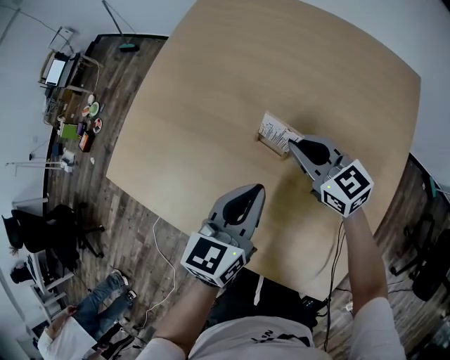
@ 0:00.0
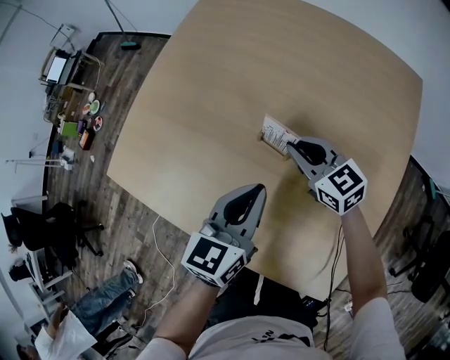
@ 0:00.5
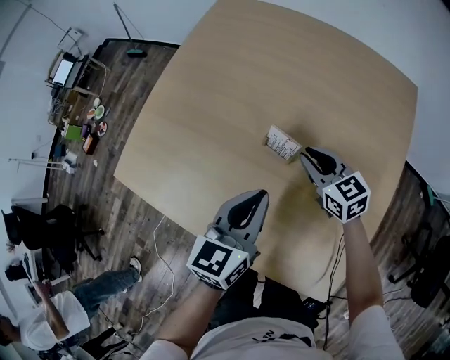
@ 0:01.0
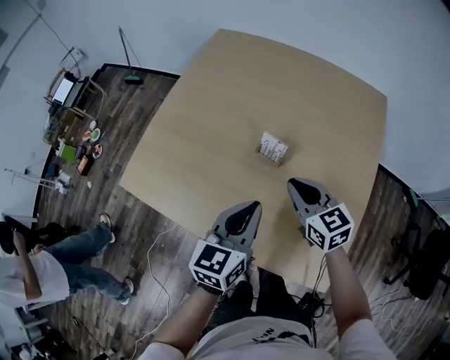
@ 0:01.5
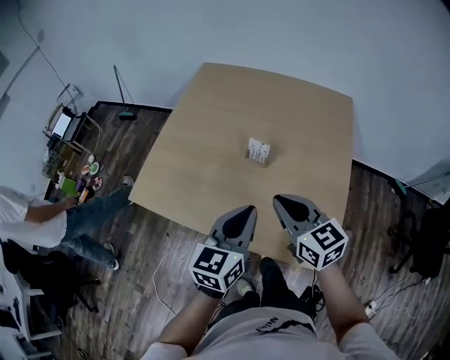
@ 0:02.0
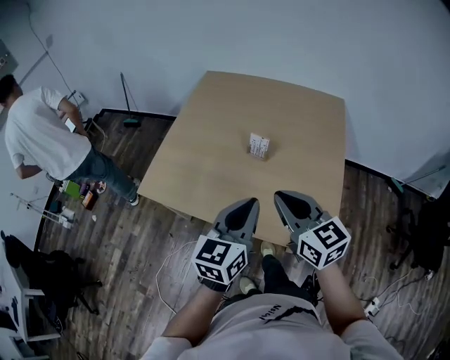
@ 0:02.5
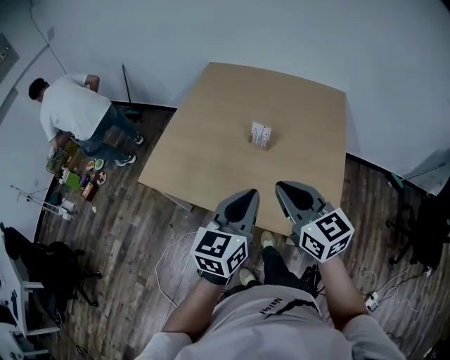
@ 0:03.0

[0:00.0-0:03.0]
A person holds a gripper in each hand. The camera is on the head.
0:00.0 to 0:01.5: Both grippers travel together backward and upward, about 10 cm.
0:01.5 to 0:03.0: The grippers both shift backward and upward by roughly 25 cm.

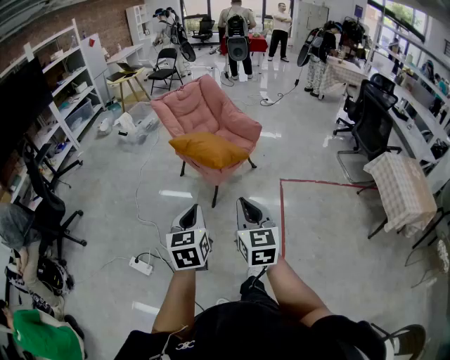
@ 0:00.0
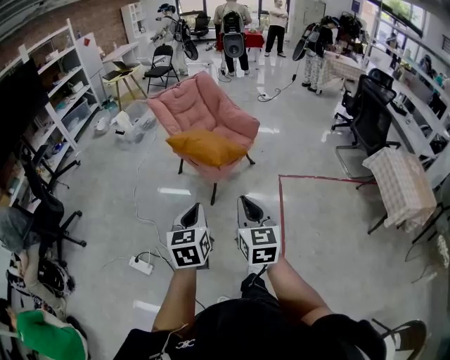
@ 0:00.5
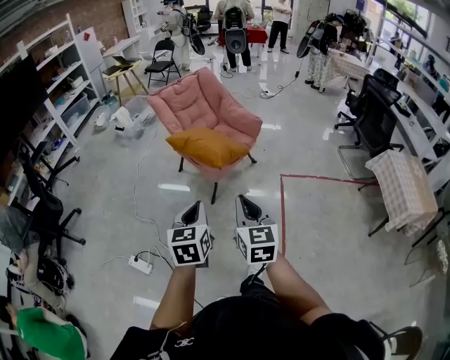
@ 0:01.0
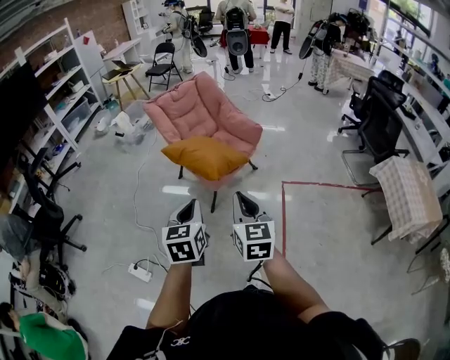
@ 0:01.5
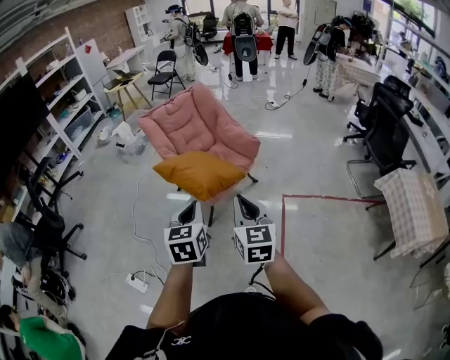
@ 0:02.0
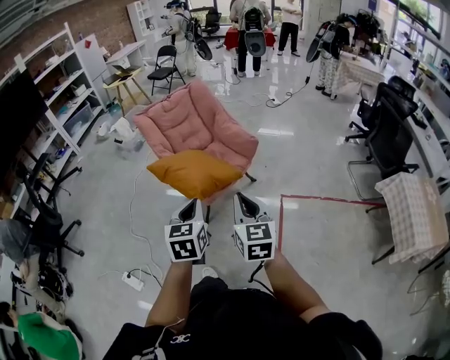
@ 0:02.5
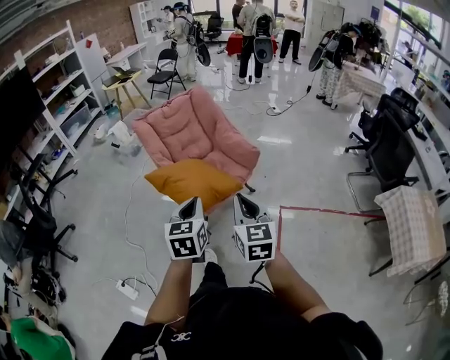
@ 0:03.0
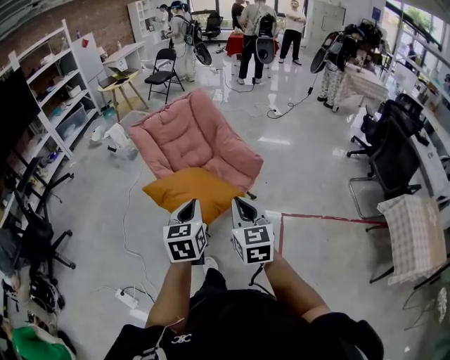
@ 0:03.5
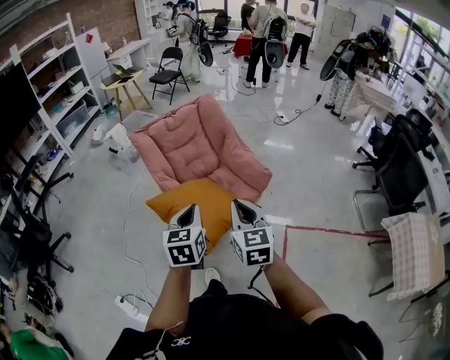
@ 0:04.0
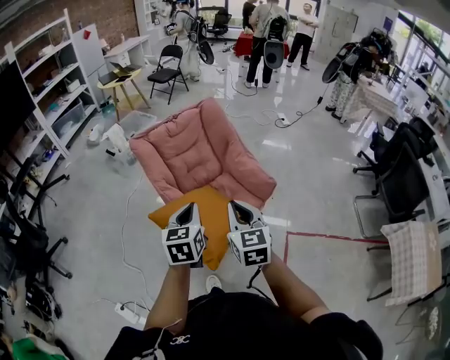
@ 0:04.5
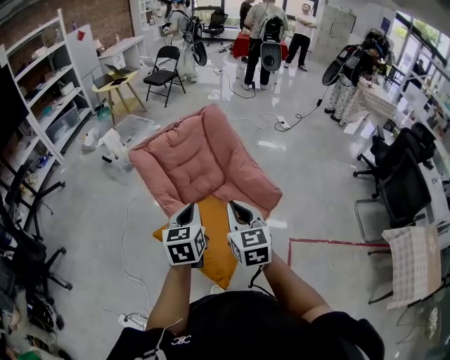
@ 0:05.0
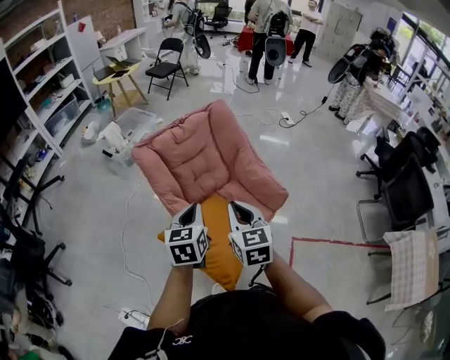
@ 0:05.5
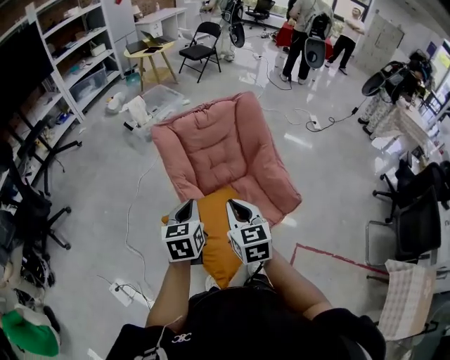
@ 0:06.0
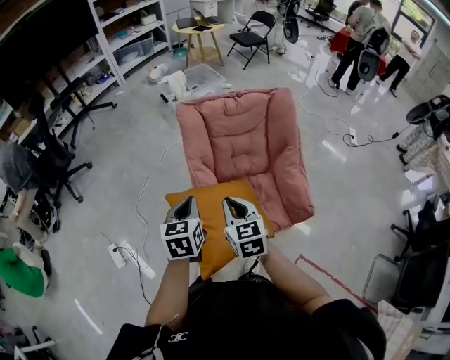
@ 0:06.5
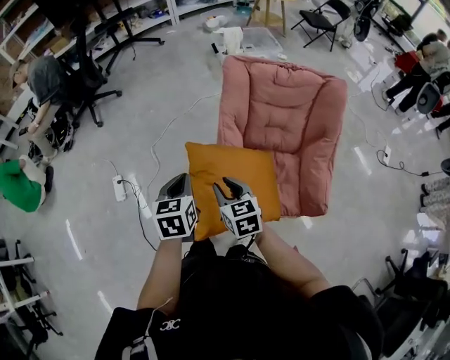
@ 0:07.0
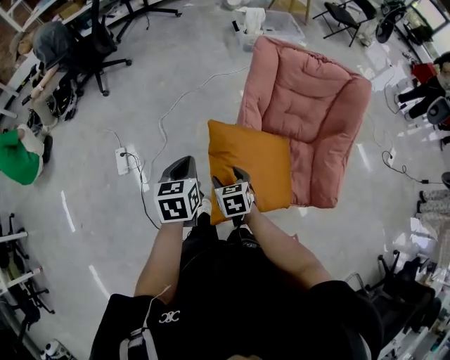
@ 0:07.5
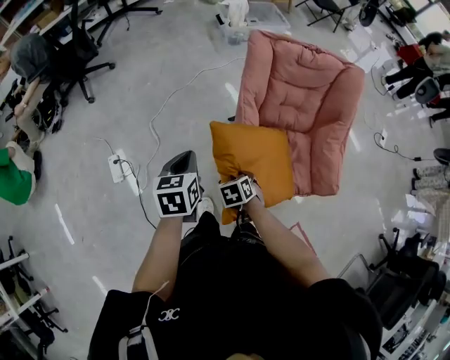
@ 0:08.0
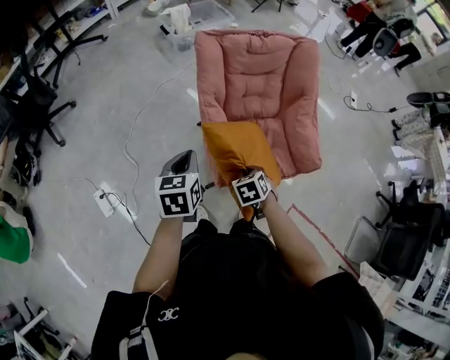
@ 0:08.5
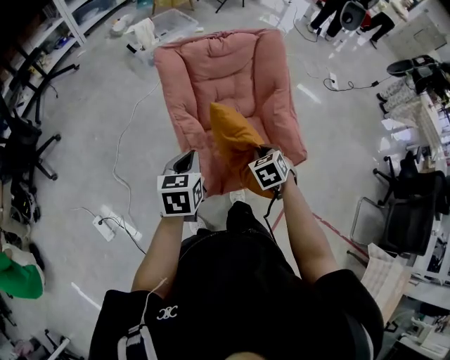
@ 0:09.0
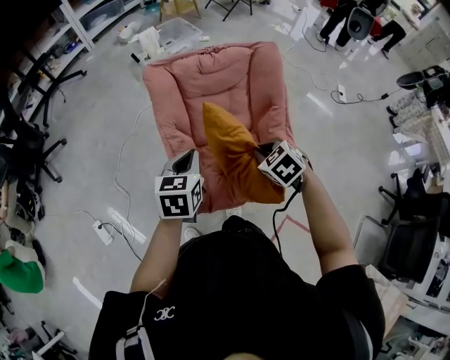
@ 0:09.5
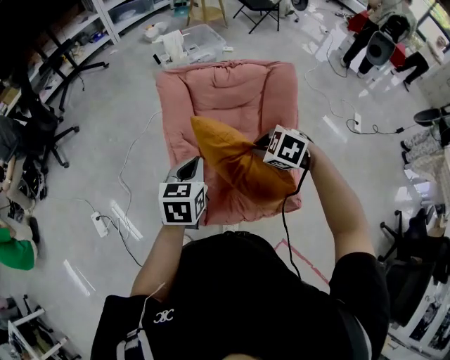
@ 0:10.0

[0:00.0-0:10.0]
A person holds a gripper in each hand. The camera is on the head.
0:00.0 to 0:02.0: Both grippers travel together forward and to the right, some 25 cm.
0:02.0 to 0:04.0: The grippers both shift forward by roughly 25 cm.
0:04.0 to 0:06.0: Both grippers travel together forward and to the left, approximately 25 cm.
0:06.0 to 0:08.0: The right gripper moves downward, approximately 30 cm, tilts its fingers approximately 50 degrees downward, and opens up, while the left gripper ends up some 20 cm from where it was, and rotates approximately 30 degrees.
0:08.0 to 0:10.0: The left gripper changes place by approximately 35 cm, and turns by roughly 20 degrees, while the right gripper moves approximately 40 cm, rotates approximately 40 degrees, and closes.

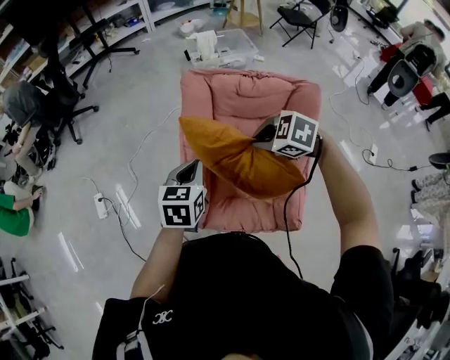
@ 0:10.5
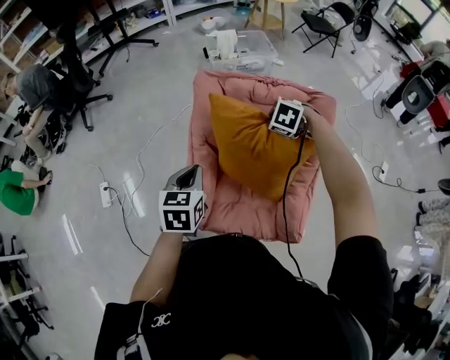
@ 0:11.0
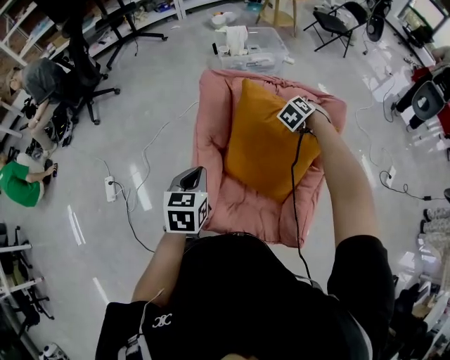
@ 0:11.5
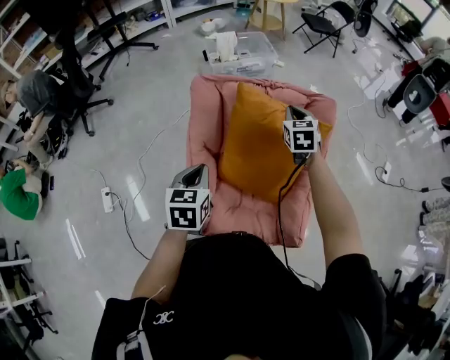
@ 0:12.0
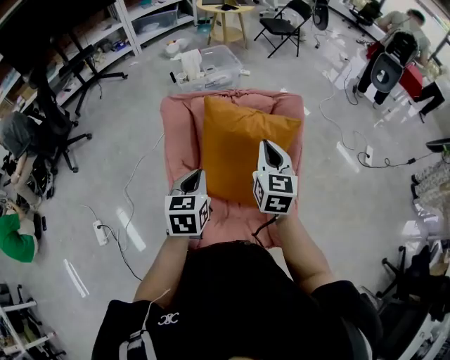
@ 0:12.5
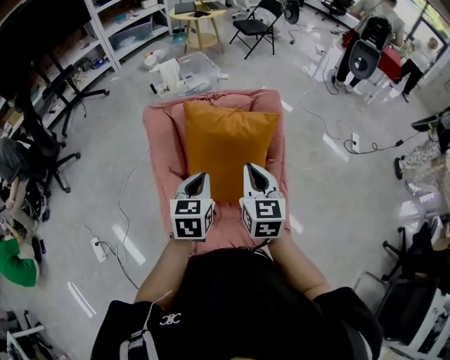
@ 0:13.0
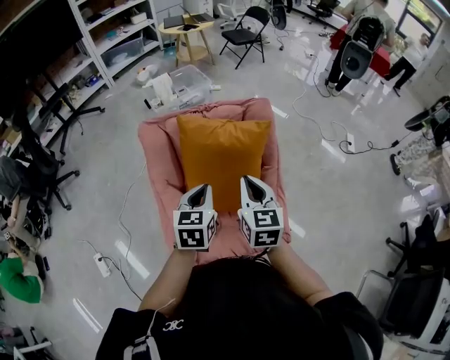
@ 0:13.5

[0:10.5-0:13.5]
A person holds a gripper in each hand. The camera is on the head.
0:10.5 to 0:12.0: The right gripper travels downward and back again, some 10 cm each way, and tips its fingers upward by about 30 degrees.
0:12.0 to 0:13.5: The right gripper shifts approximately 25 cm backward, and swivels about 20 degrees, while the left gripper goes about 15 cm to the right.

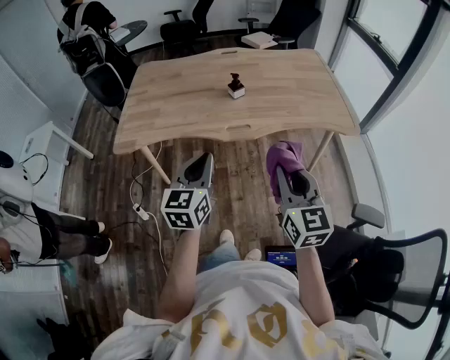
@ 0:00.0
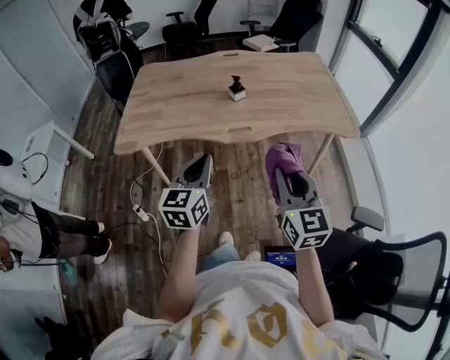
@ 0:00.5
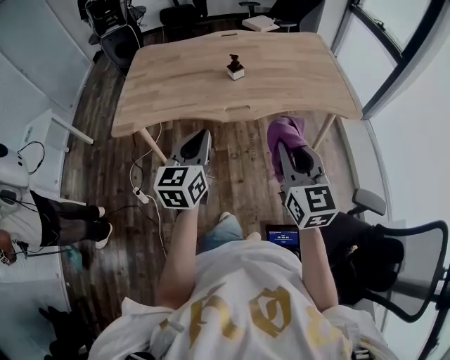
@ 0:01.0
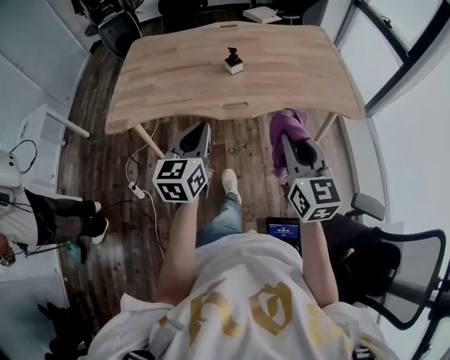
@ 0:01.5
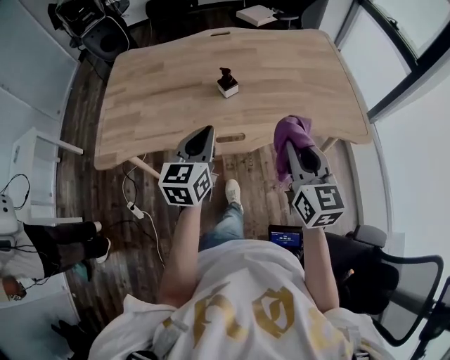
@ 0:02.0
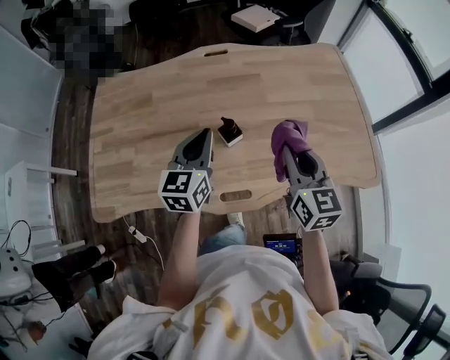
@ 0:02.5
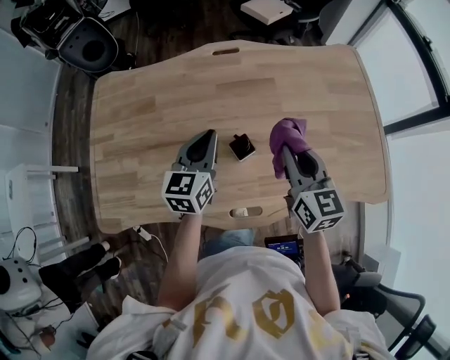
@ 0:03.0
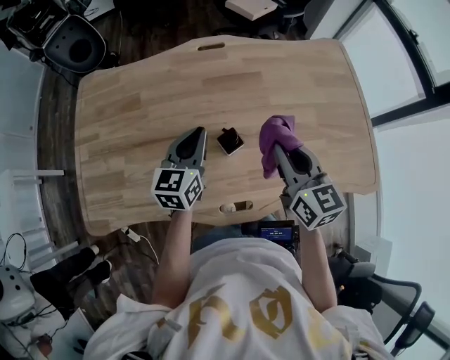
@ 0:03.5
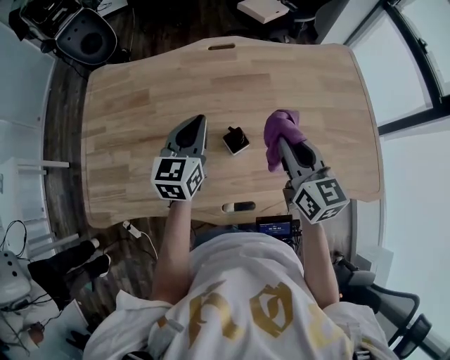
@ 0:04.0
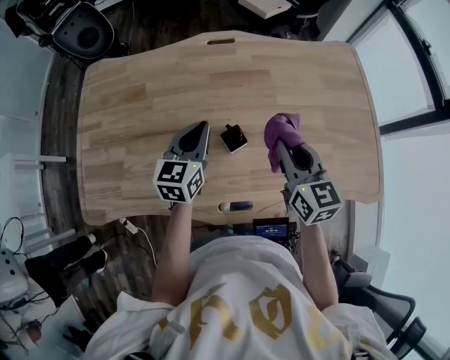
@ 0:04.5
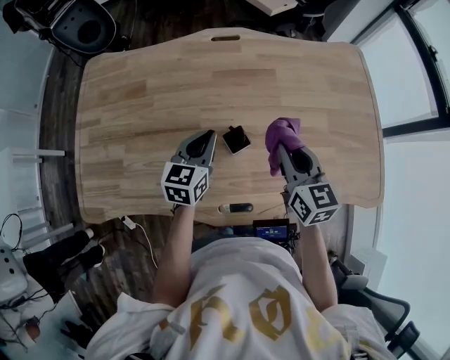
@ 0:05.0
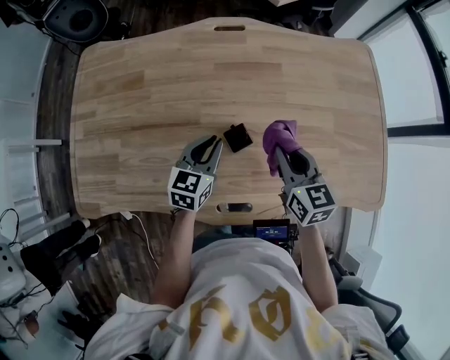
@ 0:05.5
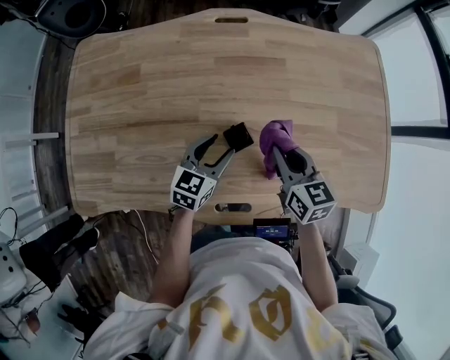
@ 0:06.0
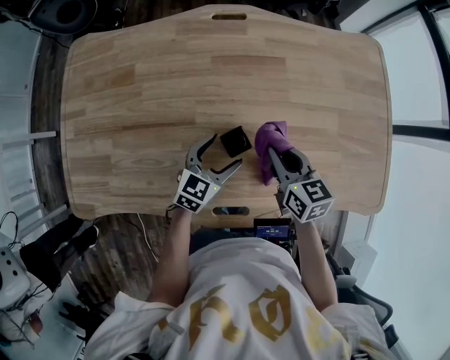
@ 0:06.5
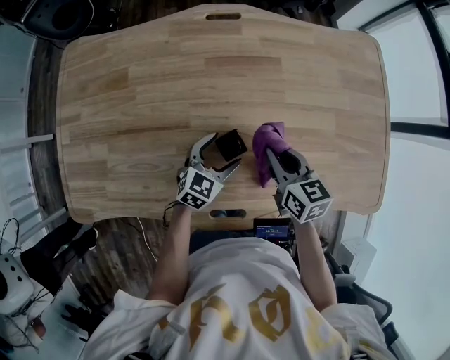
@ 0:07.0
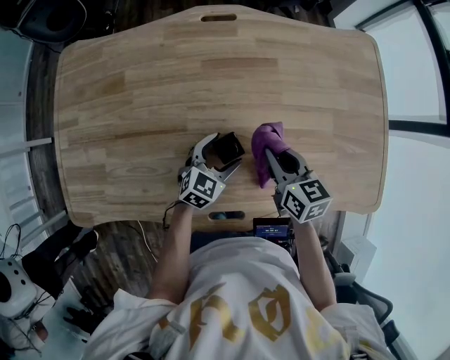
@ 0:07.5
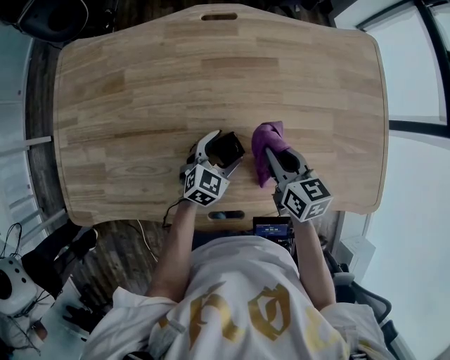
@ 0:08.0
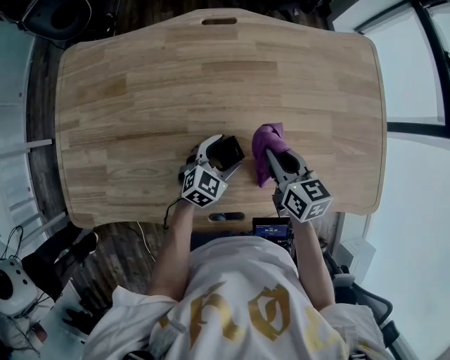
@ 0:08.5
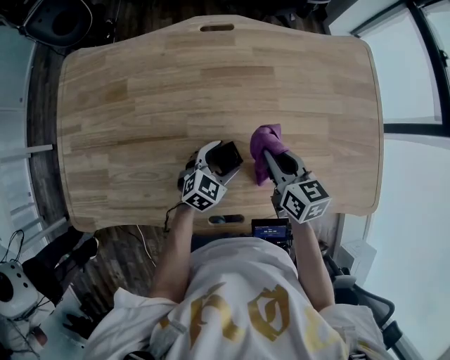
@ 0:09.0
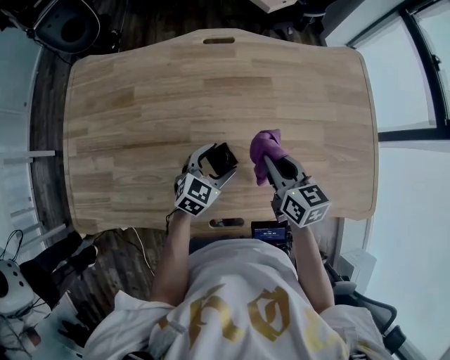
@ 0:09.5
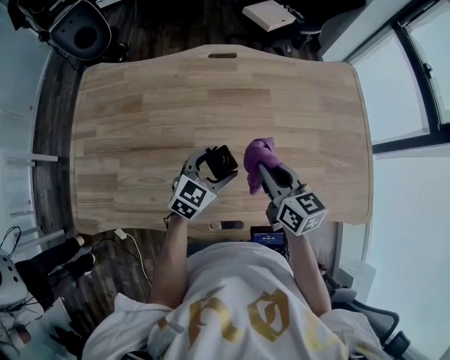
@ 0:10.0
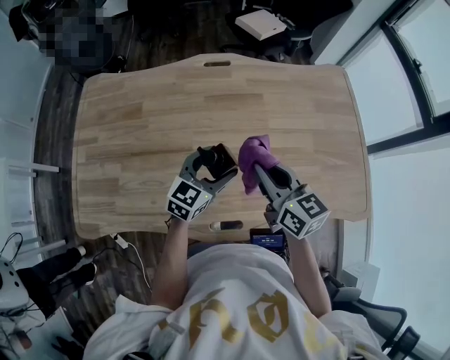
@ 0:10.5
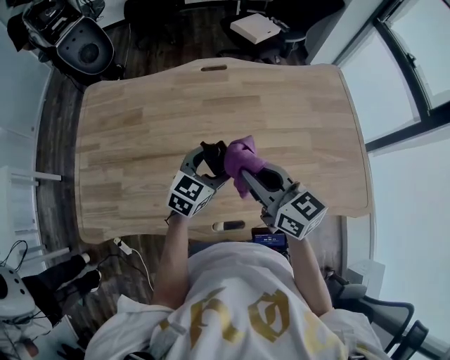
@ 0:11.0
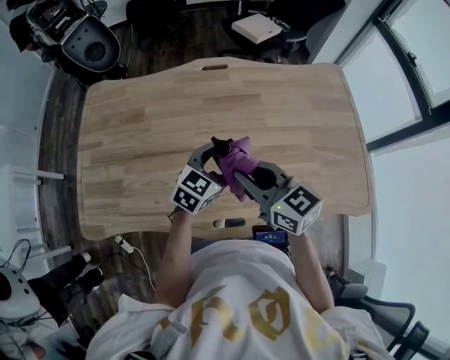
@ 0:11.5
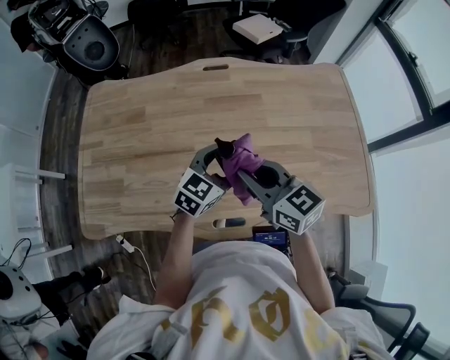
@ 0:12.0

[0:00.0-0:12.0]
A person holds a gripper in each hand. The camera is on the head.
0:00.0 to 0:02.0: The two grippers go some 25 cm forward.
0:02.0 to 0:04.0: Both grippers move forward, approximately 35 cm.
0:04.0 to 0:06.0: Both grippers move downward, some 15 cm. The left gripper opens up.
0:06.0 to 0:08.0: The left gripper travels downward by about 5 cm, turns by some 20 degrees, and opens.
0:08.0 to 0:10.0: The two grippers go about 10 cm upward.
0:10.0 to 0:12.0: The right gripper is displaced upward and backward by roughly 10 cm. Meanwhile the left gripper is displaced upward by about 5 cm.
